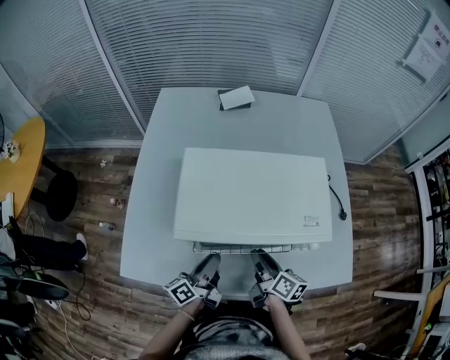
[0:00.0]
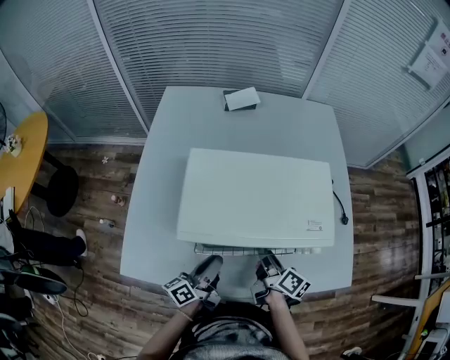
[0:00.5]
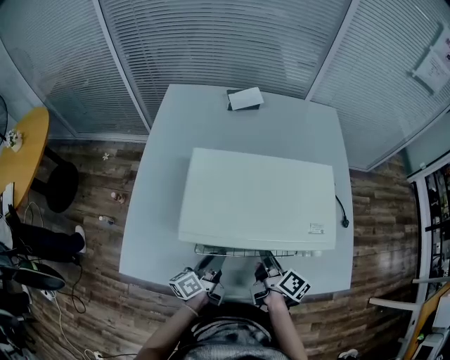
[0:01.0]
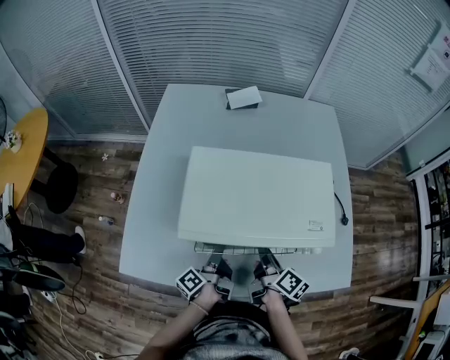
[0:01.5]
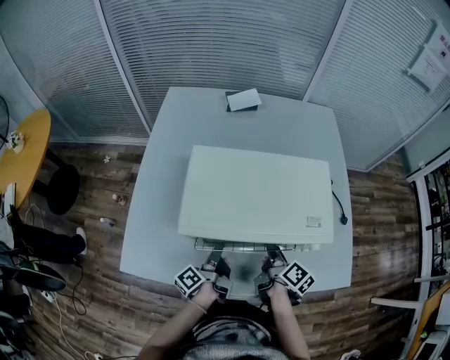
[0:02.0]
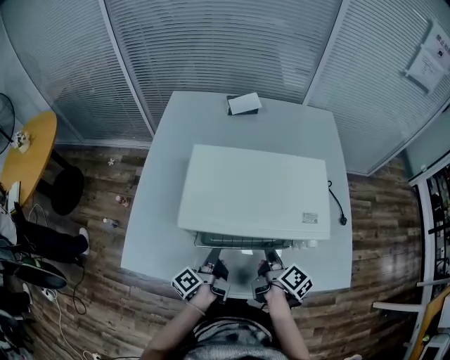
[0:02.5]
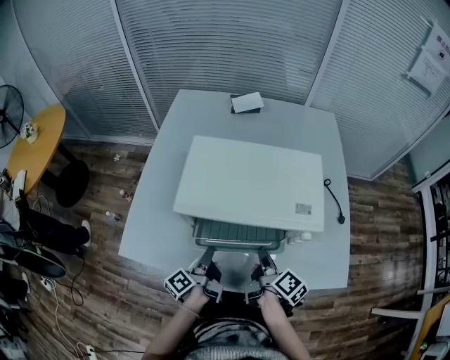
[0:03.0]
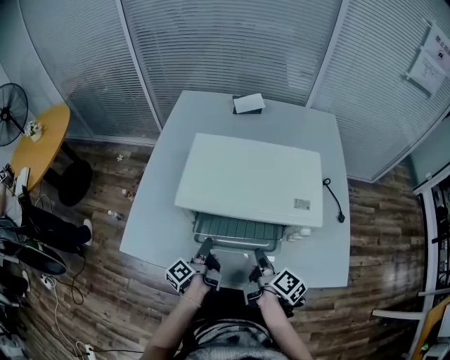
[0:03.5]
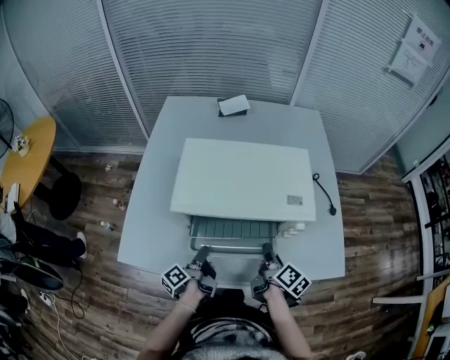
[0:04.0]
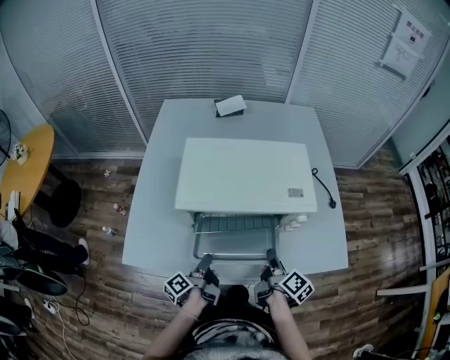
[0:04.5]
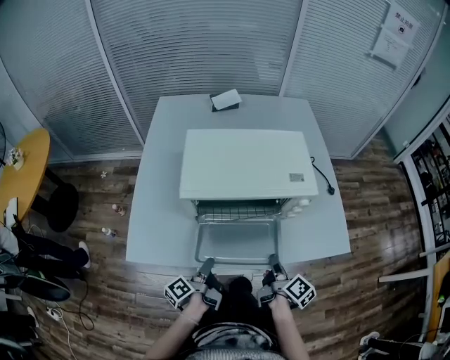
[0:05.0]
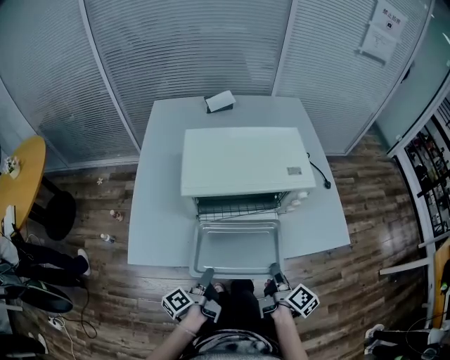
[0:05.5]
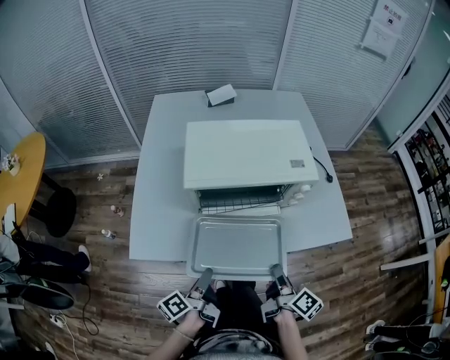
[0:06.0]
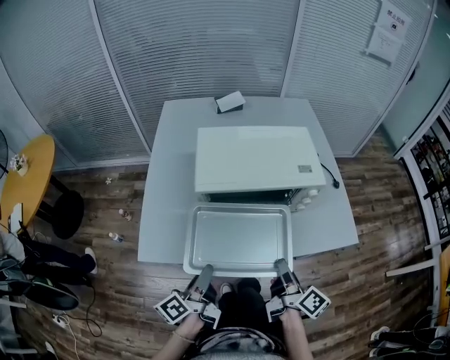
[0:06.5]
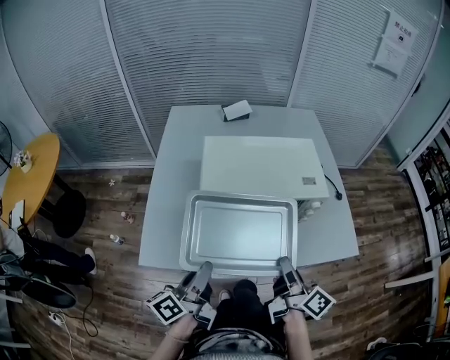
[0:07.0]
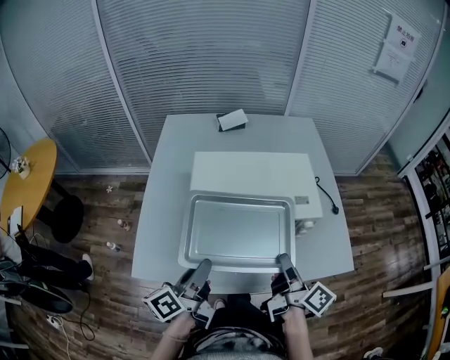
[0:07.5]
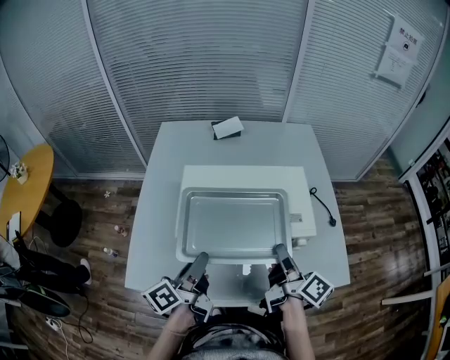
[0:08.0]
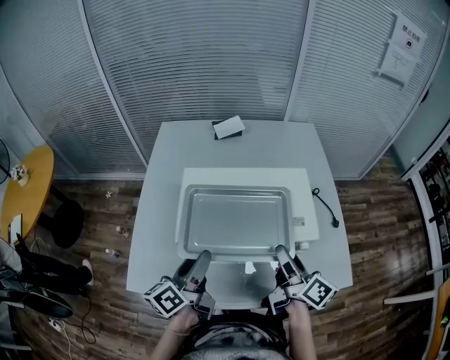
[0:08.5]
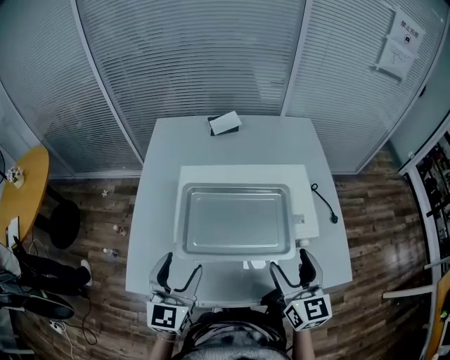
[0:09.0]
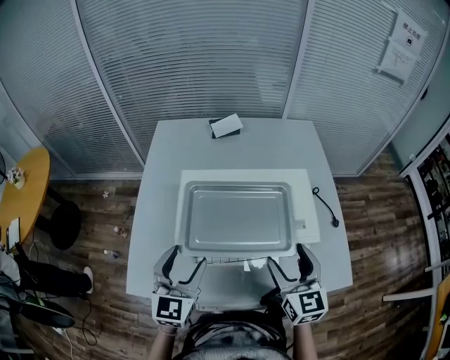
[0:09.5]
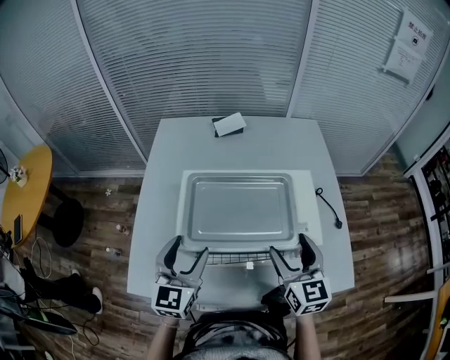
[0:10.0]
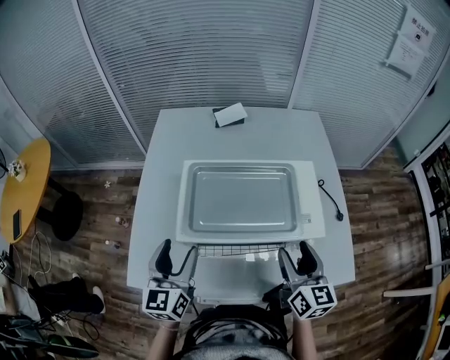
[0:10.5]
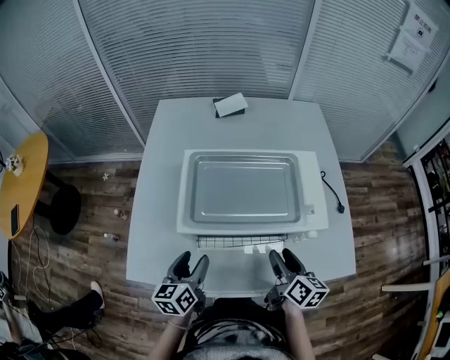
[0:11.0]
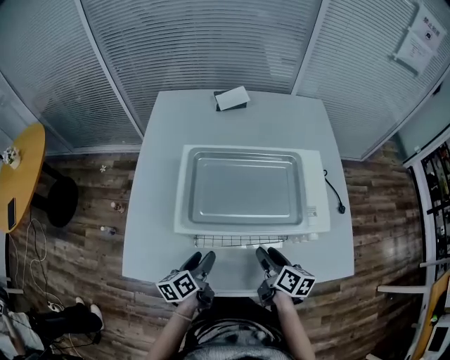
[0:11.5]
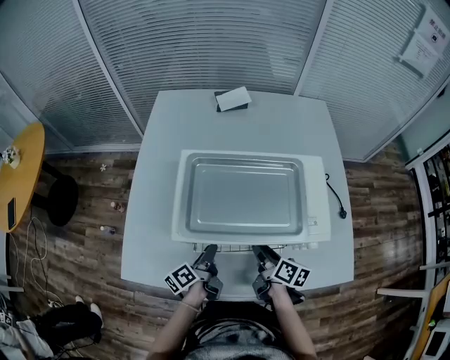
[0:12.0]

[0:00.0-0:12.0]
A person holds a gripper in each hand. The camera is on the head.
0:00.0 to 0:02.0: The left gripper swivels approximately 30 degrees, while the right gripper ends up about 5 cm from where it was.
0:02.0 to 0:04.0: Both grippers travel together backward, roughly 5 cm.
0:04.0 to 0:06.0: The two grippers go approximately 15 cm backward.
0:06.0 to 0:08.0: The grippers both shift forward and upward by some 25 cm. The left gripper swivels roughly 20 degrees.
0:08.0 to 0:10.0: The left gripper travels forward by about 5 cm, rotates around the line of its fingers by about 70 degrees, clockwise from behind, and opens up, while the right gripper changes place by approximately 5 cm, rotates around the line of its fingers by about 60 degrees, counterclockwise from behind, and opens.
0:10.0 to 0:12.0: The grippers both shift downward by some 20 cm. The left gripper rolls counterclockwise, seen from behind, by roughly 80 degrees, and closes its fingers, while the right gripper twists approximately 50 degrees clockwise, seen from behind, and closes up.

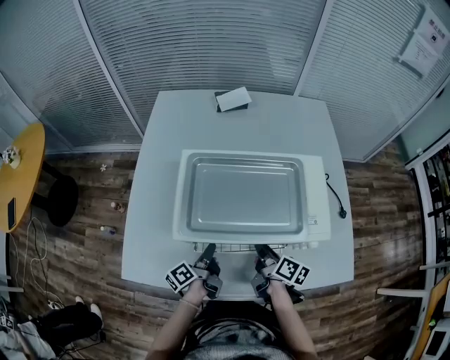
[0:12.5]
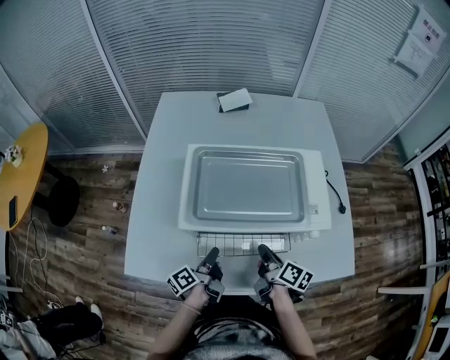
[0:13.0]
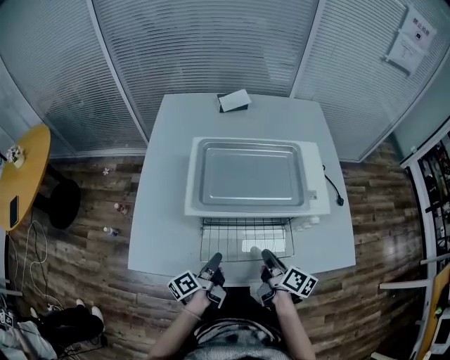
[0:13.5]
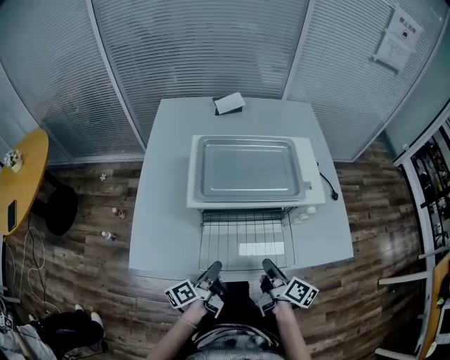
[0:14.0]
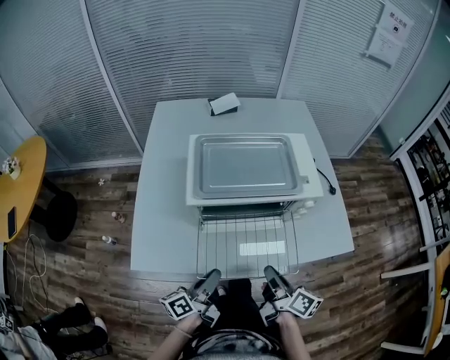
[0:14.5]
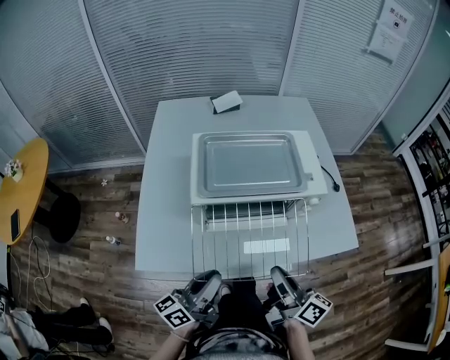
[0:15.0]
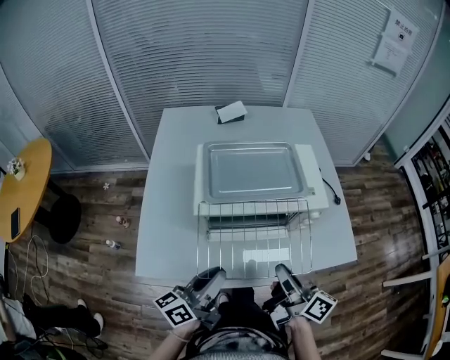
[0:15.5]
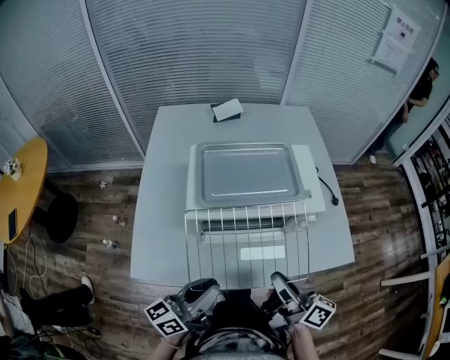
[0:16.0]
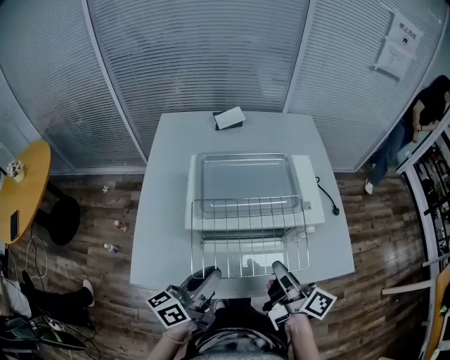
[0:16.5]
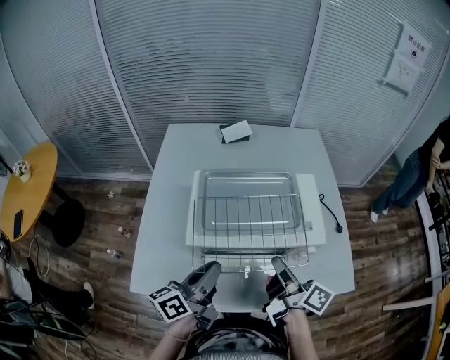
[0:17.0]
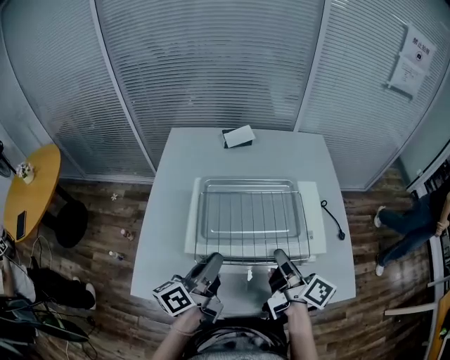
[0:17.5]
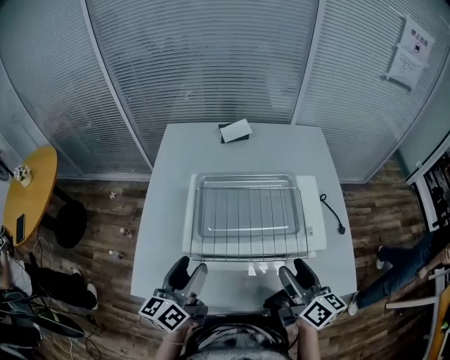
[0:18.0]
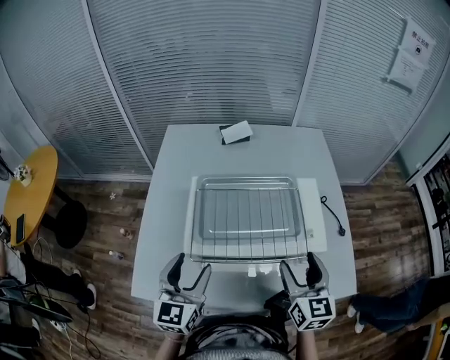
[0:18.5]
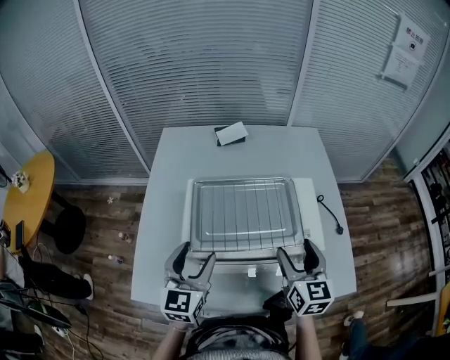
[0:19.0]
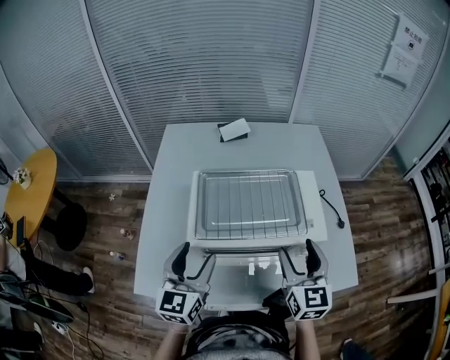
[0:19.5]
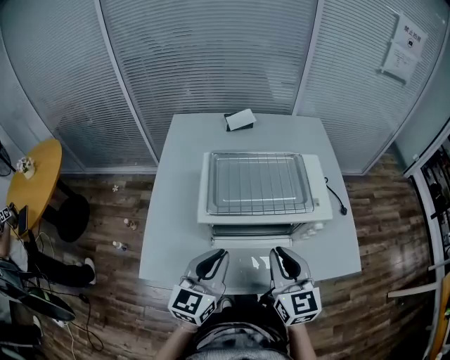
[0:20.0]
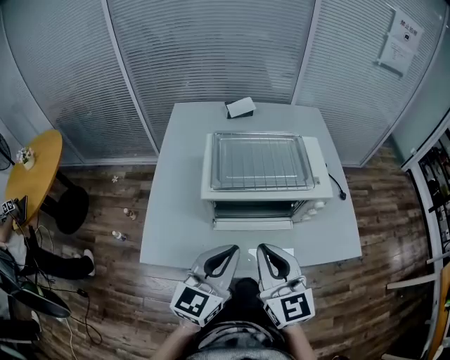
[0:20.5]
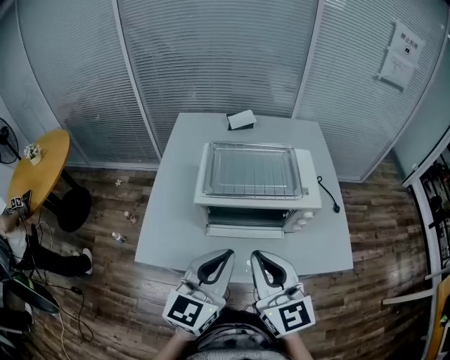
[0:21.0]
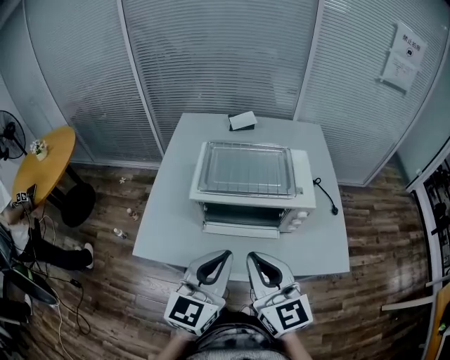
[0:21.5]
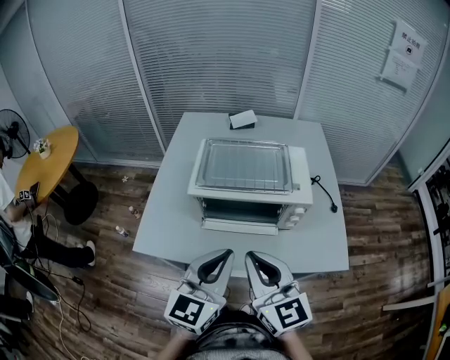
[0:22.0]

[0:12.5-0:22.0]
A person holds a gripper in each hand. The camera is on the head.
0:12.5 to 0:14.5: The grippers both shift backward and upward by about 20 cm. The left gripper swivels roughly 30 degrees.
0:14.5 to 0:16.5: The grippers both shift upward and forward by about 15 cm.
0:16.5 to 0:18.0: The right gripper travels forward by approximately 5 cm, swivels roughly 30 degrees, and opens. The left gripper moves forward and to the left, approximately 10 cm, swivels approximately 30 degrees, and opens its fingers.
0:18.0 to 0:20.0: The left gripper shifts about 5 cm backward, turns by about 30 degrees, and closes up. Meanwhile the right gripper is displaced to the left and backward by roughly 10 cm, changes its angle by roughly 40 degrees, and closes.
0:20.0 to 0:22.0: The left gripper goes approximately 15 cm backward, upward and to the right. Meanwhile the right gripper is displaced backward and upward by some 15 cm.

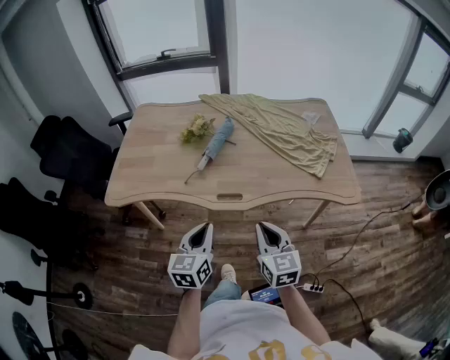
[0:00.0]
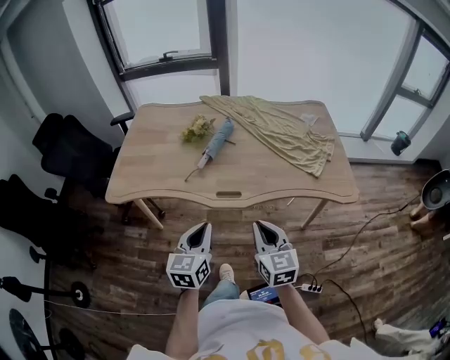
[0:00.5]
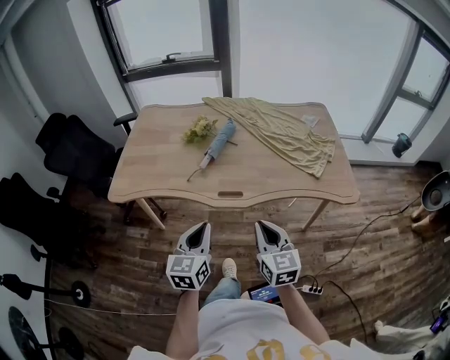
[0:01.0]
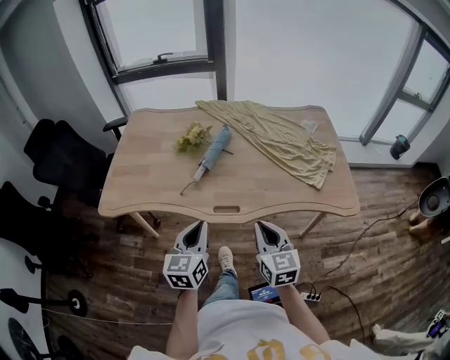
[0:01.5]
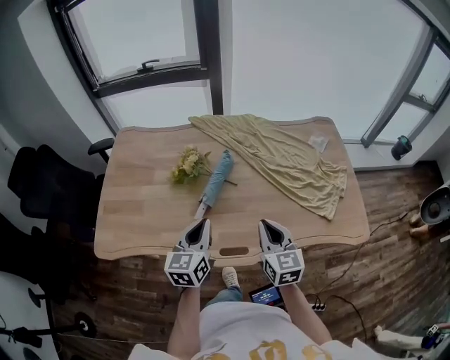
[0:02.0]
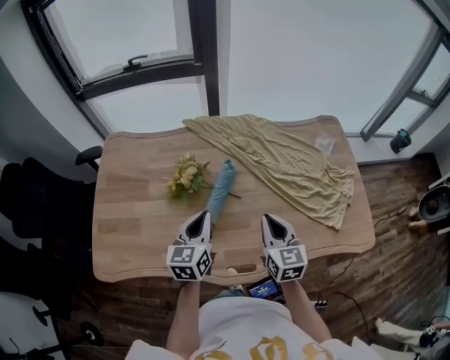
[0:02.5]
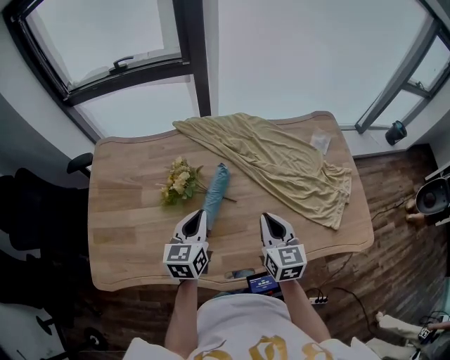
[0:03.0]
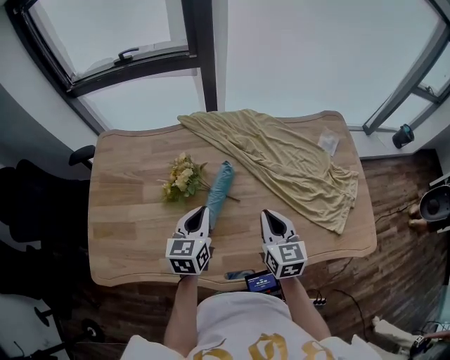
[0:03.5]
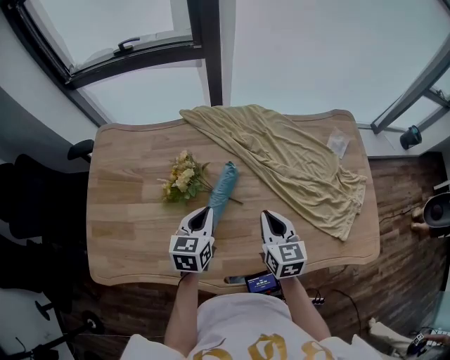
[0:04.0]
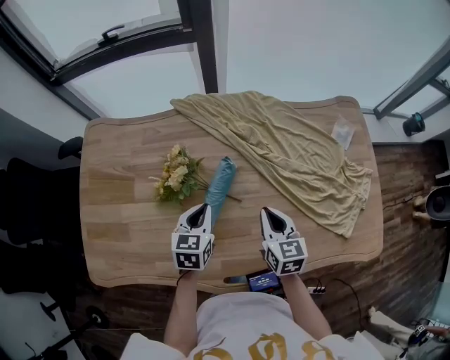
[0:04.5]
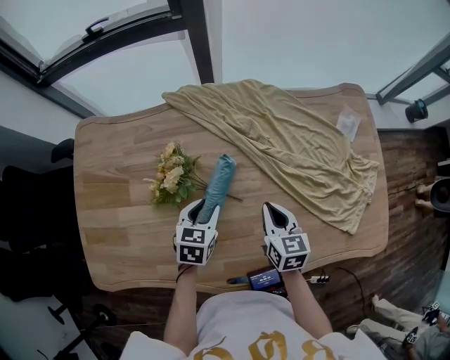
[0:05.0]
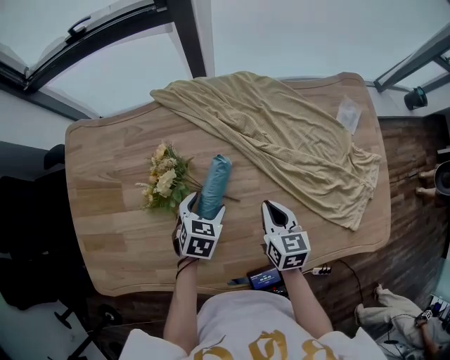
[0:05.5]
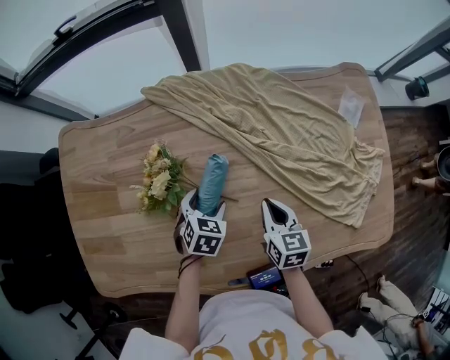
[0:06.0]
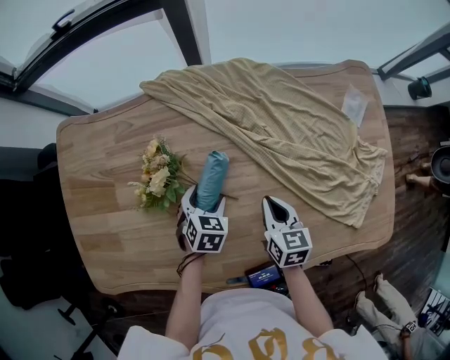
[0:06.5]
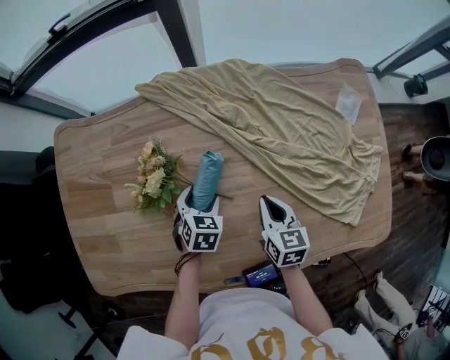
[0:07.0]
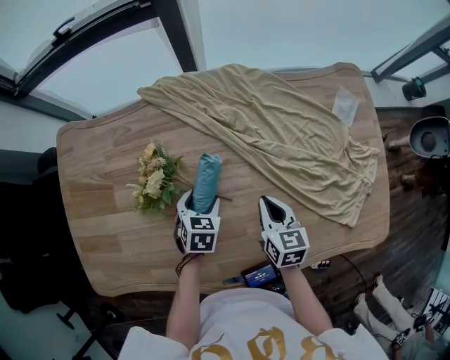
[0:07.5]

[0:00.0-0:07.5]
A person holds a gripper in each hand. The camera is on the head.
0:00.0 to 0:02.0: The two grippers go roughly 25 cm forward.
0:02.0 to 0:04.0: The grippers both shift forward and downward by approximately 20 cm.
0:04.0 to 0:05.5: The two grippers go some 10 cm downward. The left gripper changes its angle by roughly 30 degrees, and opens its fingers.
0:05.5 to 0:07.5: The grippers move only a little.
